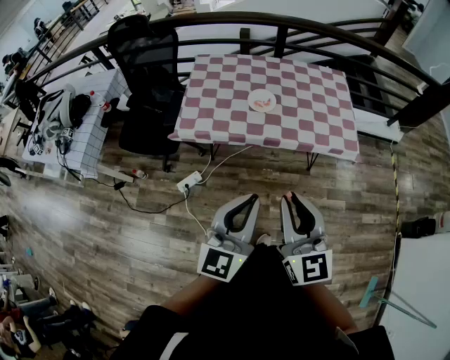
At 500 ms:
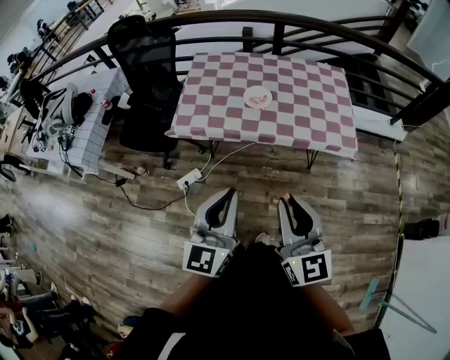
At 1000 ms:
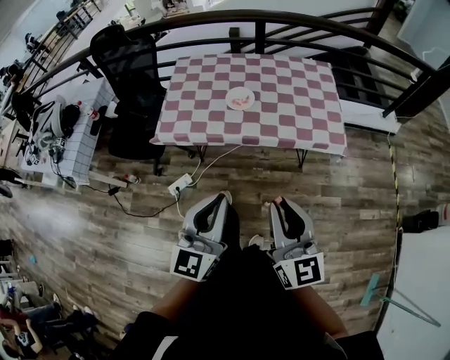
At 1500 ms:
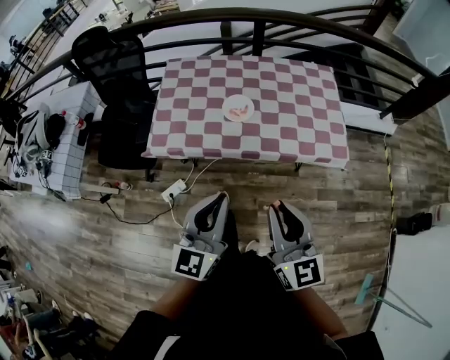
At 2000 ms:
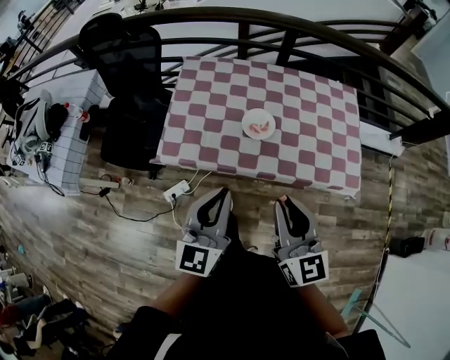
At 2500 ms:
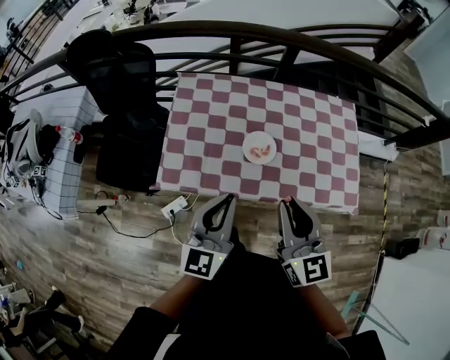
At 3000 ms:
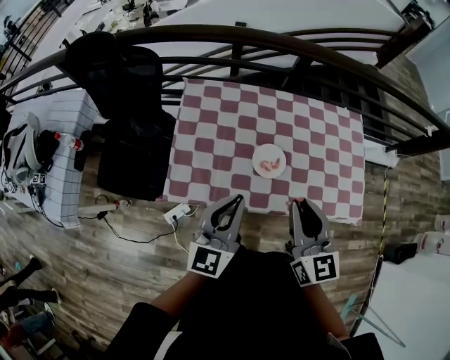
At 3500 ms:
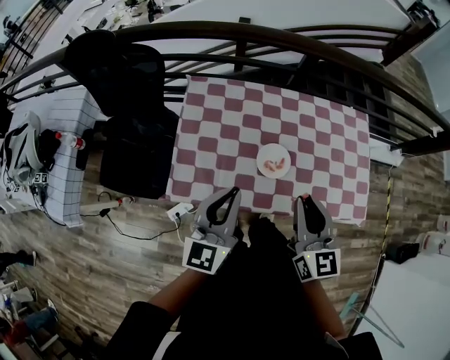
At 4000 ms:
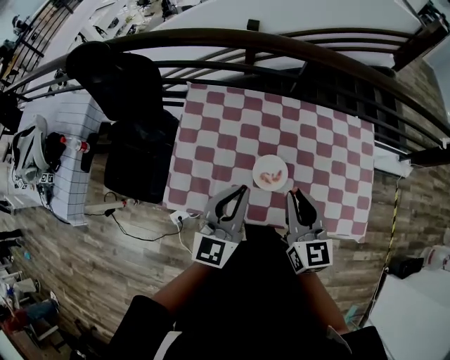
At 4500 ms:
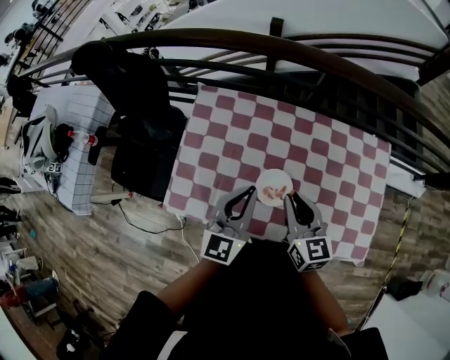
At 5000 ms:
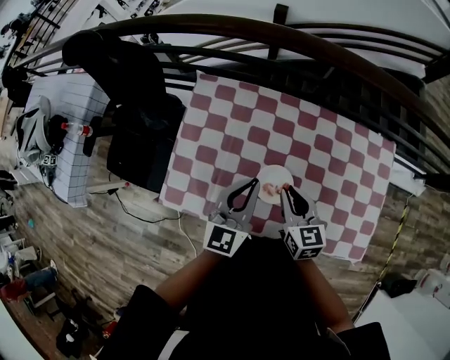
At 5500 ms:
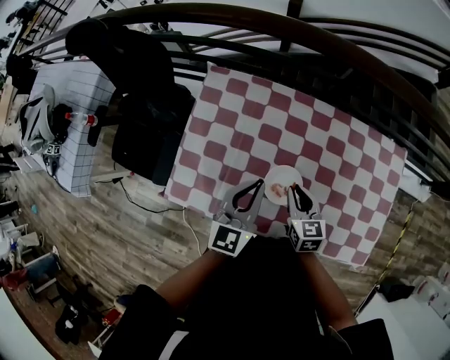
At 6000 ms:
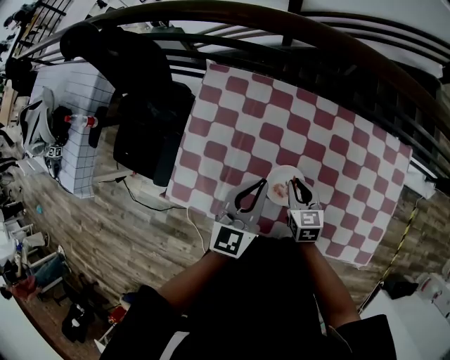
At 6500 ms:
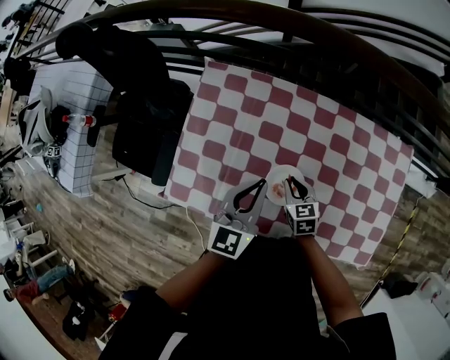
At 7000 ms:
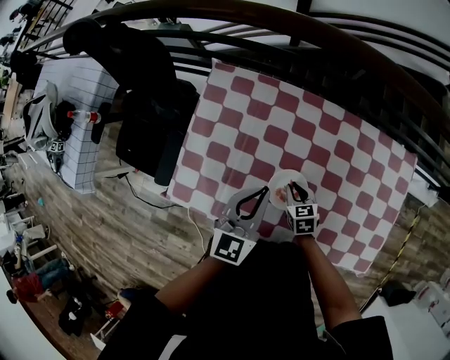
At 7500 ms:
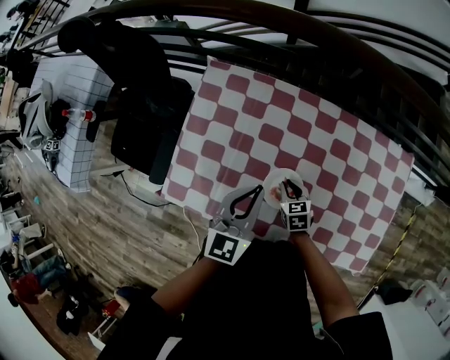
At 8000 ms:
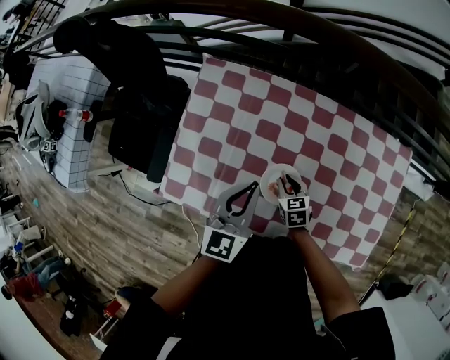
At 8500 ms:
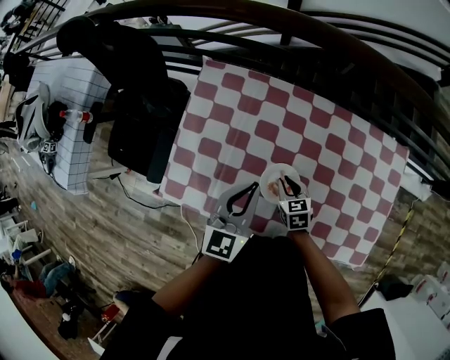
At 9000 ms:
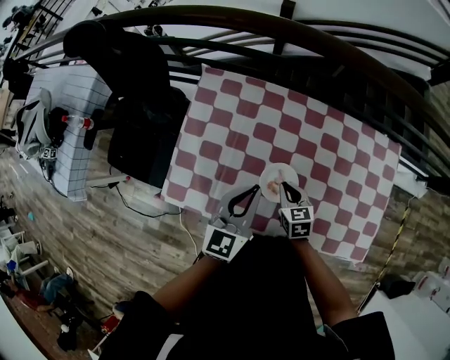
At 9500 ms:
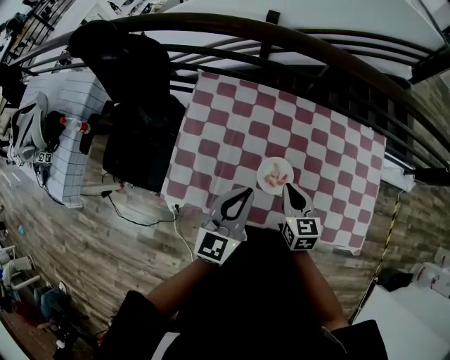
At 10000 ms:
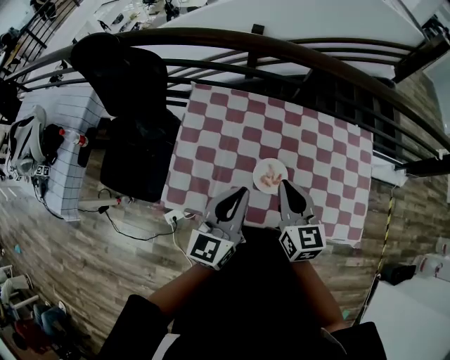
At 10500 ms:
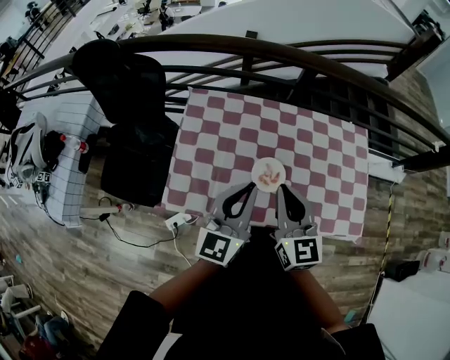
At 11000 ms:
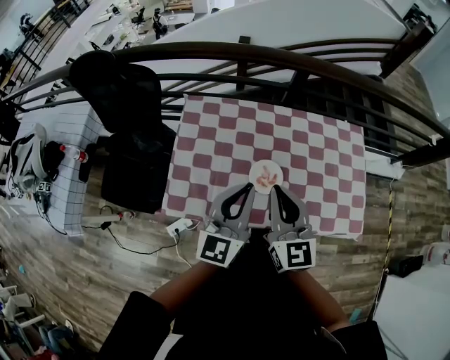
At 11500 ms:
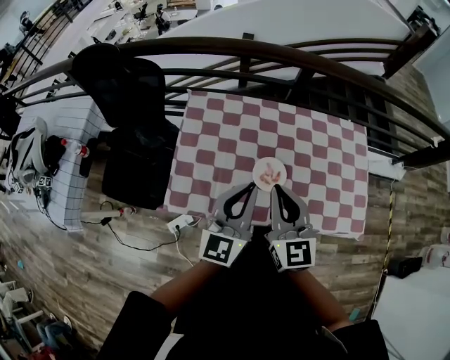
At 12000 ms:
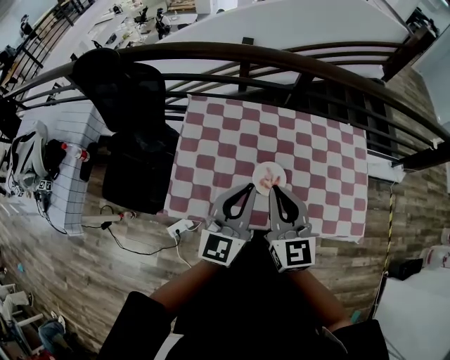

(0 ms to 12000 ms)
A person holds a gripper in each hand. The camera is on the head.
0 ms - 2000 ms: The two grippers go about 25 cm forward.
2000 ms - 4000 ms: The two grippers go roughly 25 cm forward.
4000 ms - 6000 ms: The right gripper goes approximately 25 cm downward and forward, and turns by about 30 degrees, while the left gripper shifts roughly 15 cm forward and downward.
6000 ms - 8000 ms: The right gripper is displaced downward by roughly 10 cm.
8000 ms - 10000 ms: The right gripper shifts approximately 30 cm upward, and tips its fingers upward by about 30 degrees, while the left gripper is displaced upward and backward by roughly 15 cm.
10000 ms - 12000 ms: The right gripper shifts some 5 cm upward.

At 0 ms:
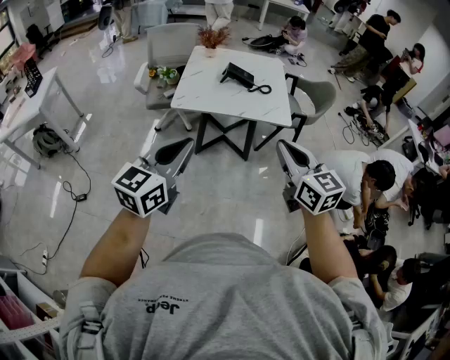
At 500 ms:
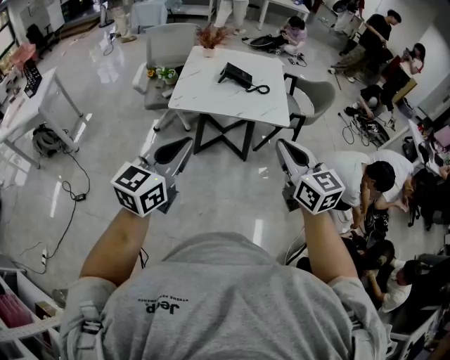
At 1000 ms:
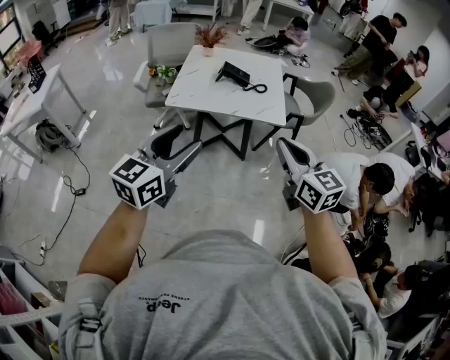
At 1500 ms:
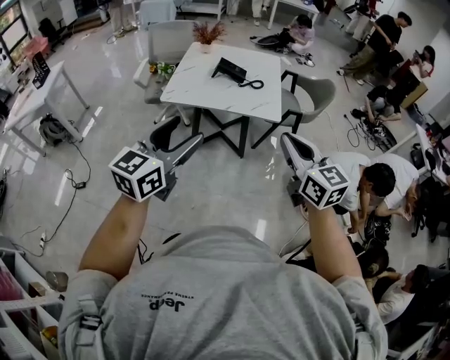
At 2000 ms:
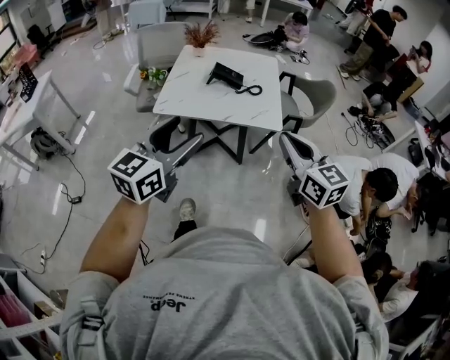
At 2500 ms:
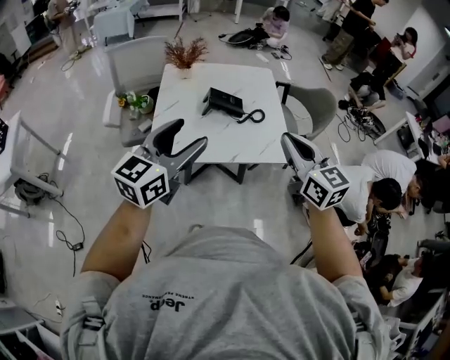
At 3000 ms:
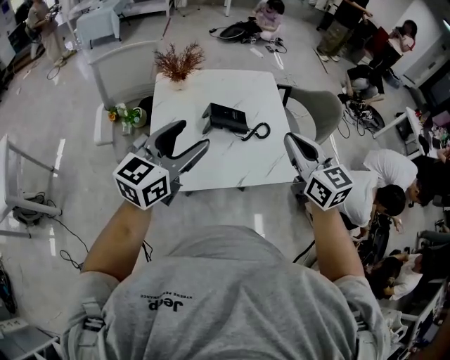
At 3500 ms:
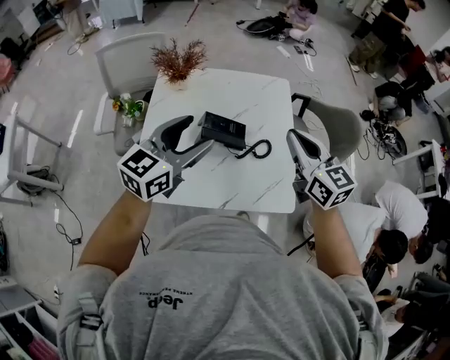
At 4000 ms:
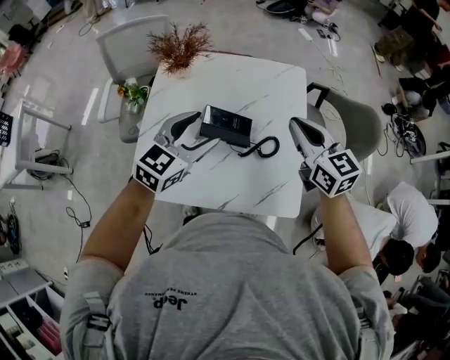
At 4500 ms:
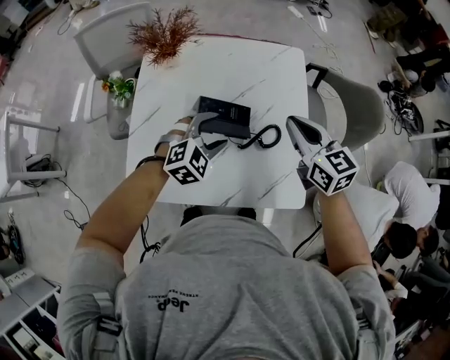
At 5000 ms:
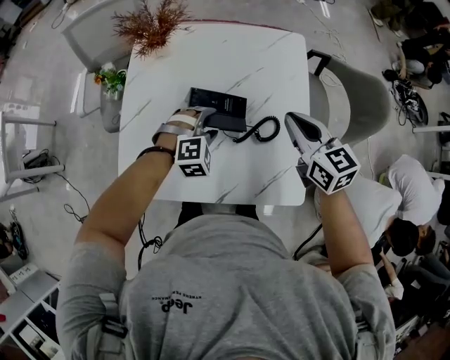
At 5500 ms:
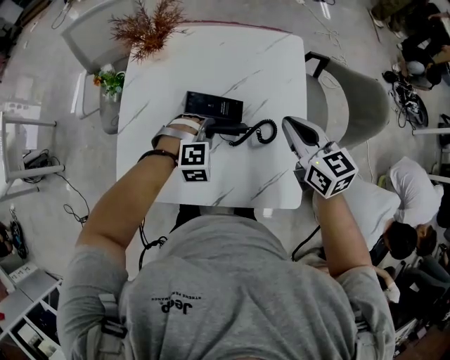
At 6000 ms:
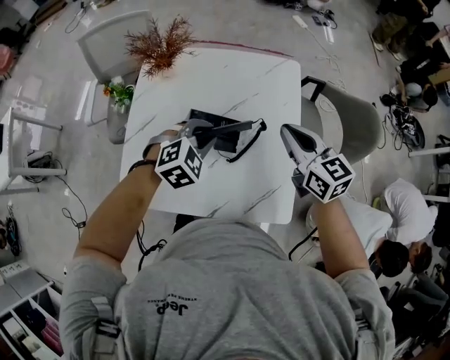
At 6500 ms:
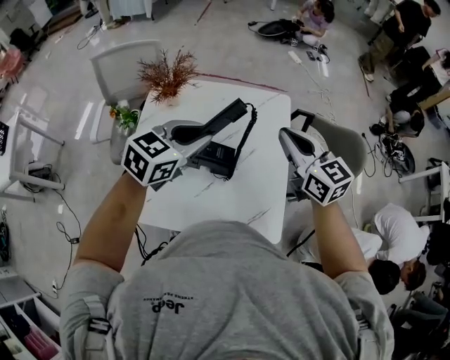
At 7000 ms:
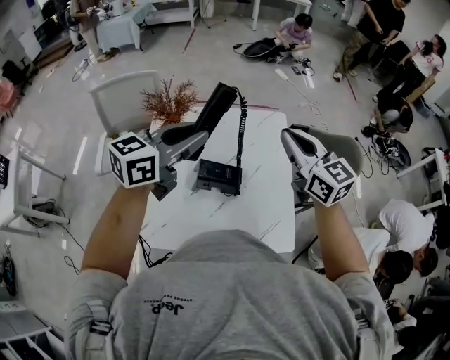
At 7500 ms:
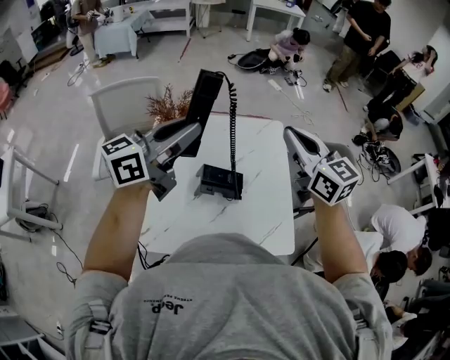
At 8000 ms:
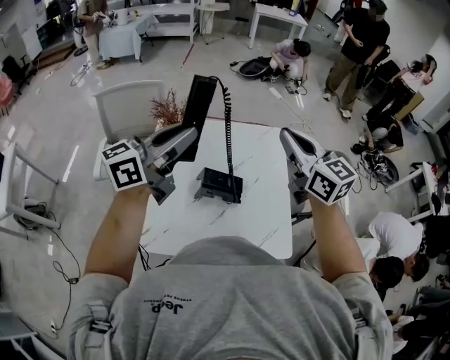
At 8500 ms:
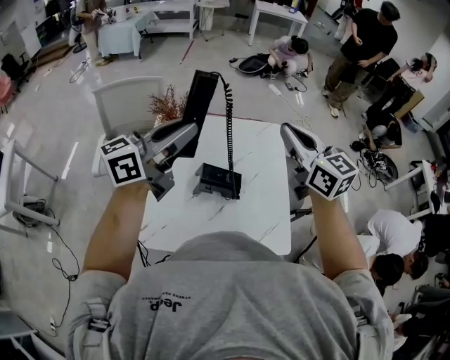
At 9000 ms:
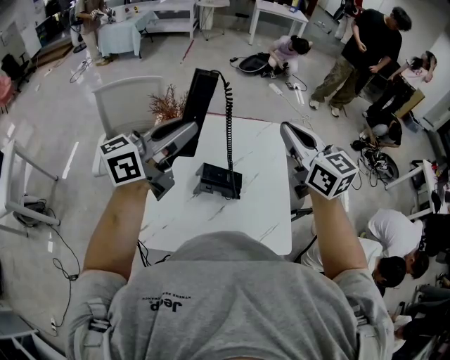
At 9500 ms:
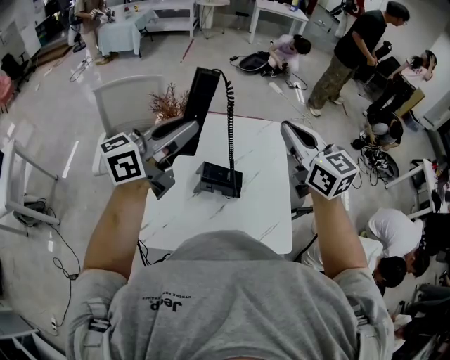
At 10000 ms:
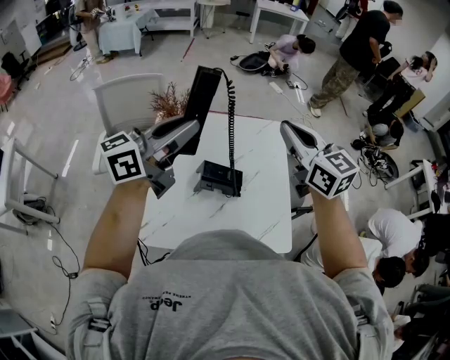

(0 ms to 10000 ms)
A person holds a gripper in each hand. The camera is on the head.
0 ms - 2000 ms: The left gripper goes about 15 cm forward and to the right, and opens. The right gripper moves to the right and forward, some 15 cm.
2000 ms - 4000 ms: The pair of grippers is taken forward, about 60 cm. The left gripper swivels some 20 degrees.
4000 ms - 6000 ms: The left gripper goes approximately 10 cm downward and to the right, rotates roughly 40 degrees, and closes up; the right gripper is displaced downward by roughly 5 cm.
6000 ms - 8000 ms: Both grippers move upward, about 25 cm. The left gripper tilts its fingers about 60 degrees upward.
8000 ms - 10000 ms: The two grippers keep their place.

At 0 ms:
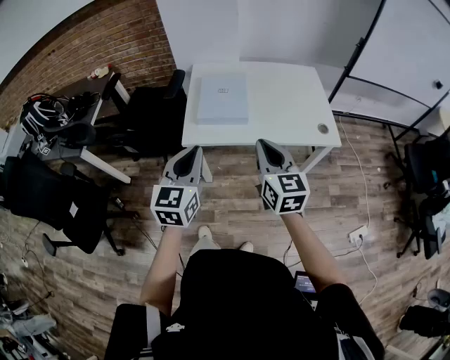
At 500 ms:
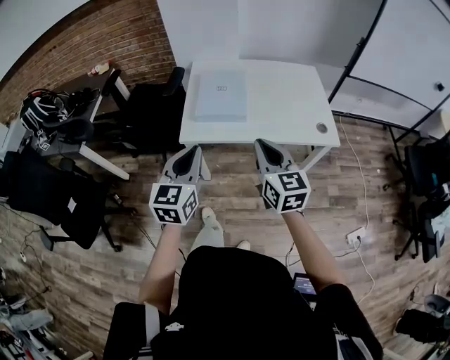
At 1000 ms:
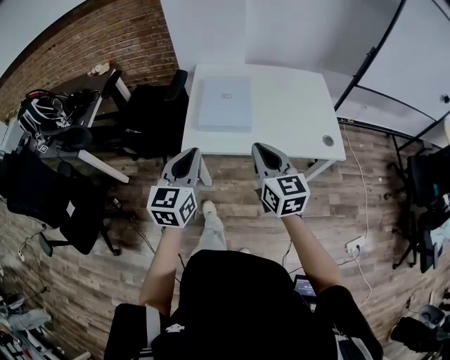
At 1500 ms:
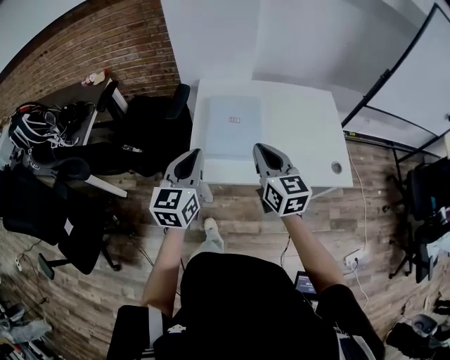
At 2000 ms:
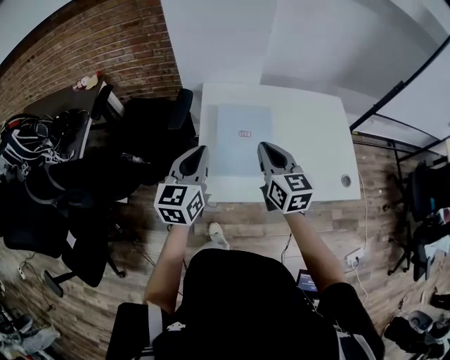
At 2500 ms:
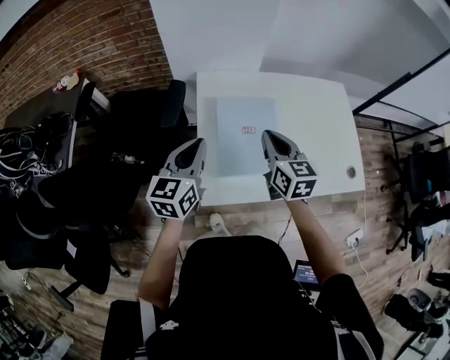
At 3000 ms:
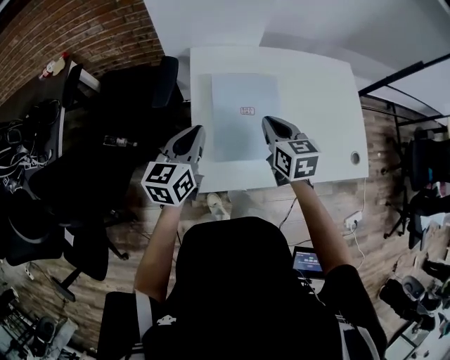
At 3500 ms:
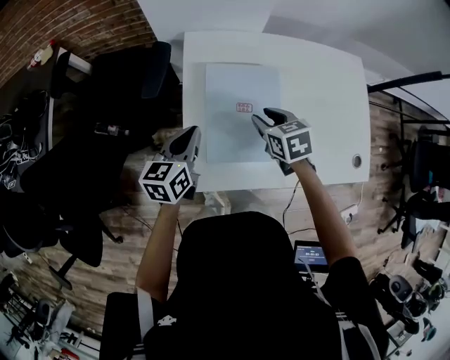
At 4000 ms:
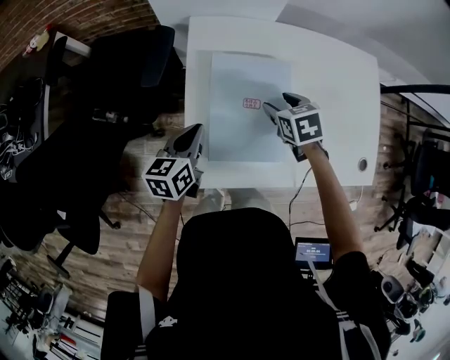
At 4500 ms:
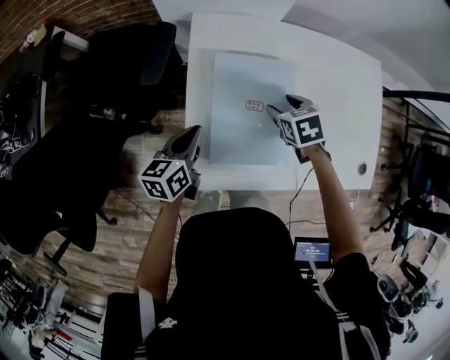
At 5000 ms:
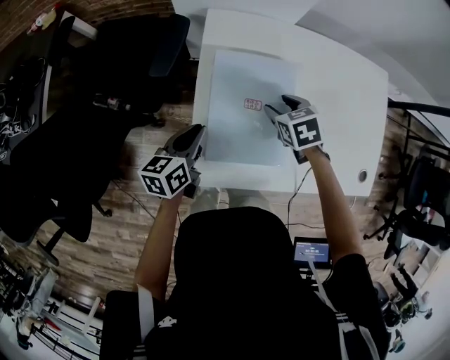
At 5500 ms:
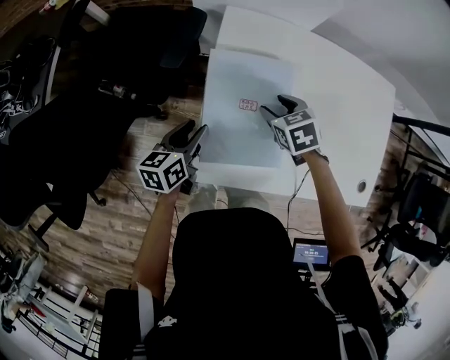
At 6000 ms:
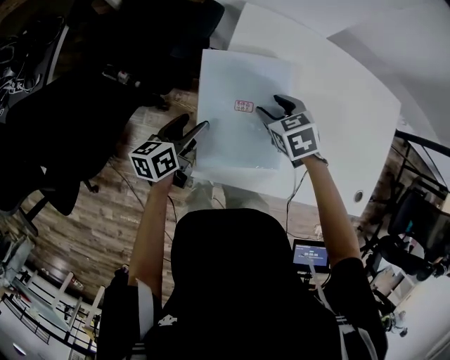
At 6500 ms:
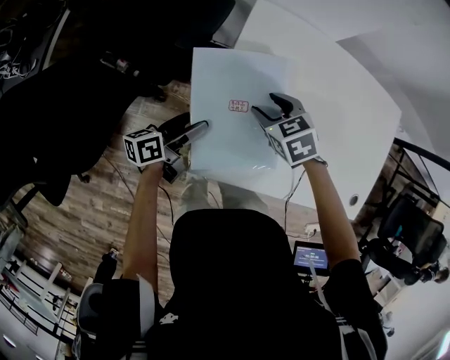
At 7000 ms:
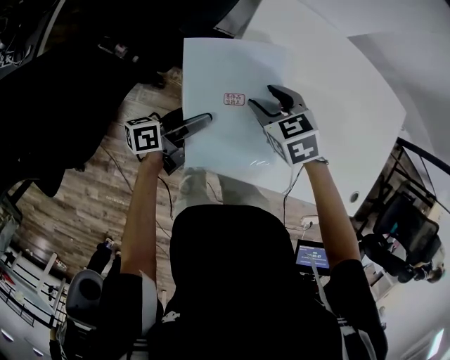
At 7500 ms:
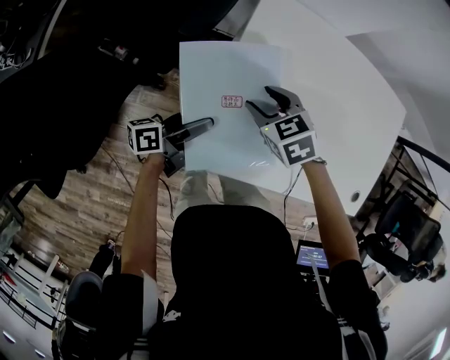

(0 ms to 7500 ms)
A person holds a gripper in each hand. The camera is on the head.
0 ms - 2000 ms: Both grippers move forward, approximately 30 cm.
2000 ms - 4000 ms: The two grippers go some 25 cm downward and forward. The left gripper rotates some 30 degrees. The right gripper points its fingers roughly 40 degrees further downward, and opens.
4000 ms - 5500 ms: The two grippers go about 5 cm to the left. The left gripper opens up.
5500 ms - 7500 ms: The left gripper changes its angle by roughly 40 degrees, and opens. Meanwhile the right gripper goes approximately 10 cm to the left.
